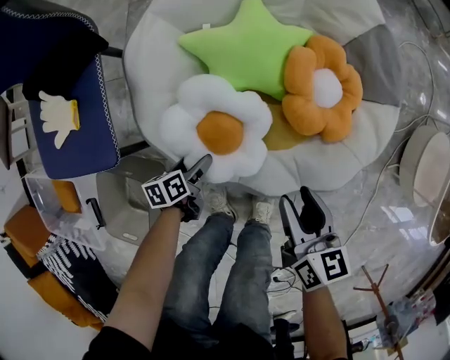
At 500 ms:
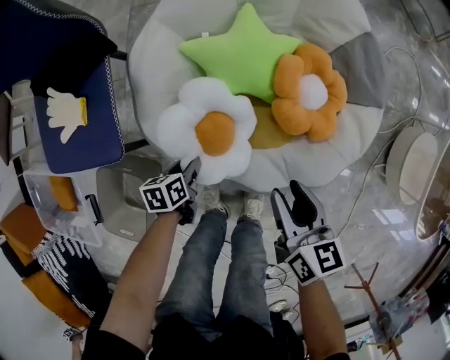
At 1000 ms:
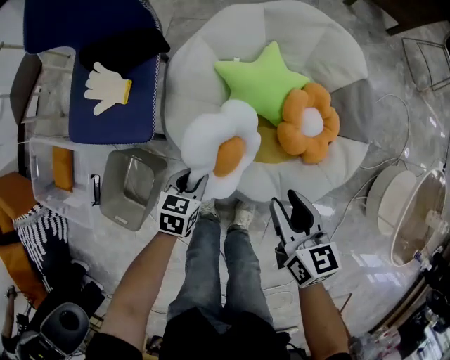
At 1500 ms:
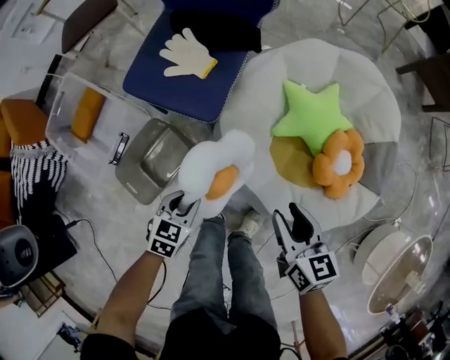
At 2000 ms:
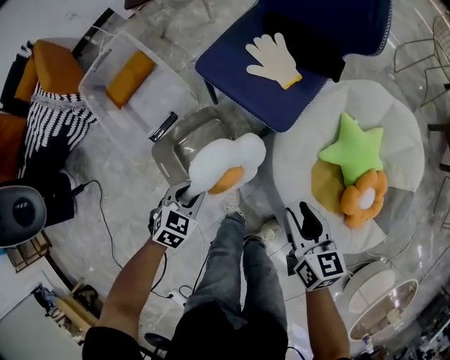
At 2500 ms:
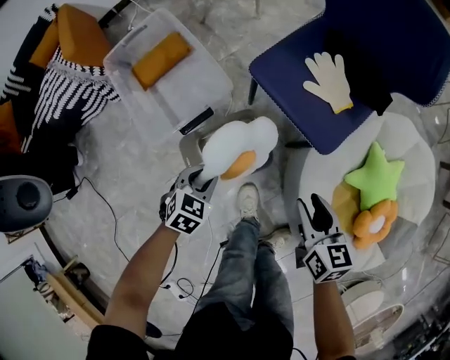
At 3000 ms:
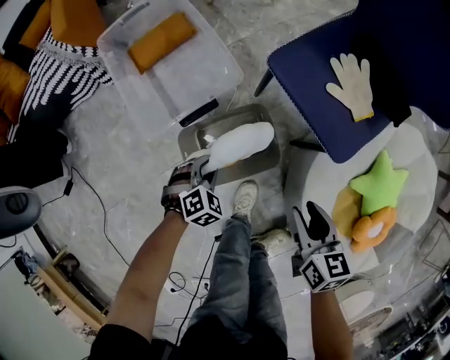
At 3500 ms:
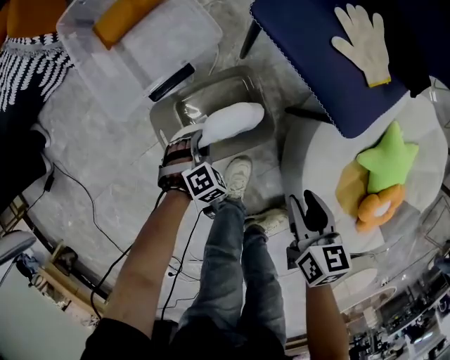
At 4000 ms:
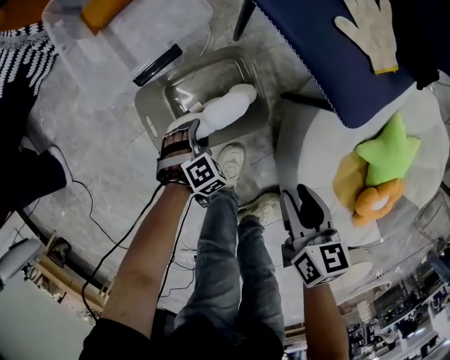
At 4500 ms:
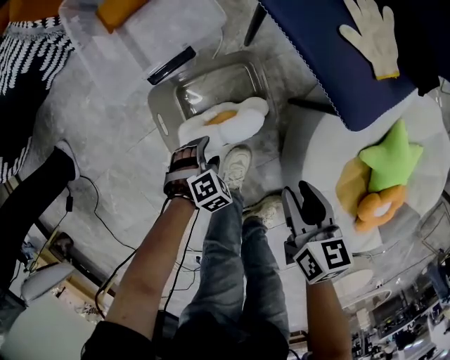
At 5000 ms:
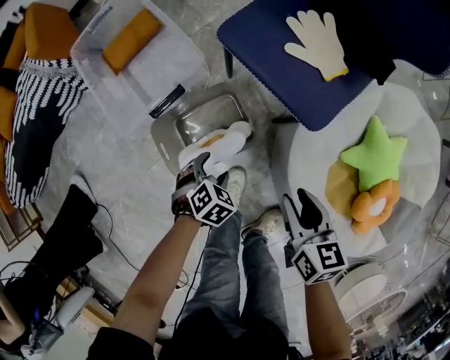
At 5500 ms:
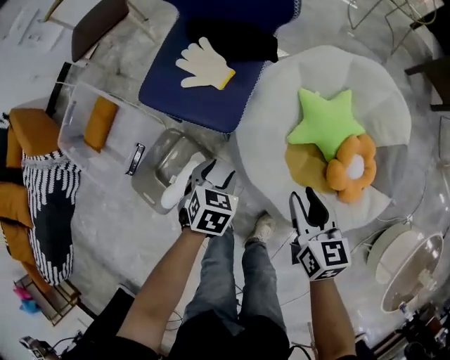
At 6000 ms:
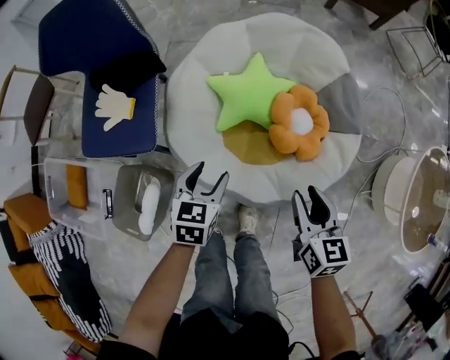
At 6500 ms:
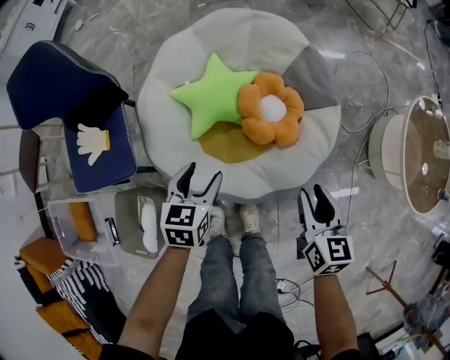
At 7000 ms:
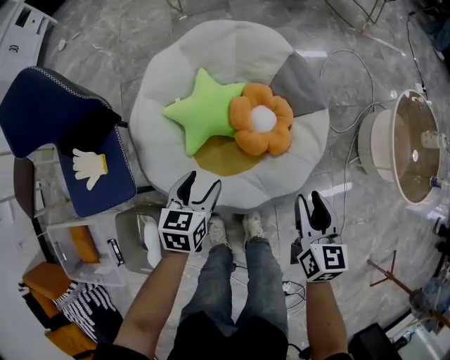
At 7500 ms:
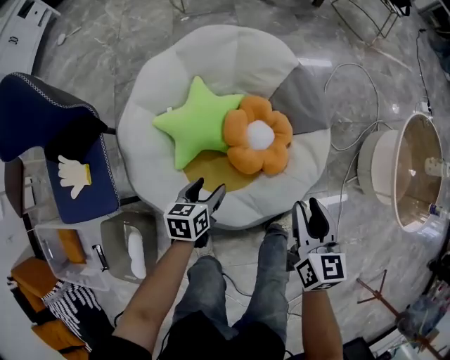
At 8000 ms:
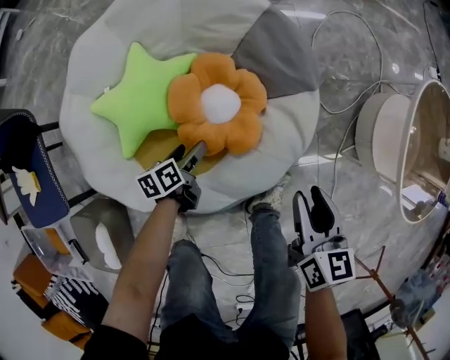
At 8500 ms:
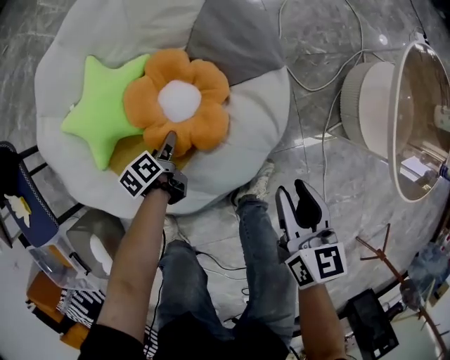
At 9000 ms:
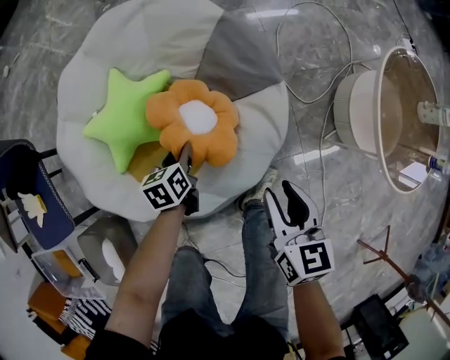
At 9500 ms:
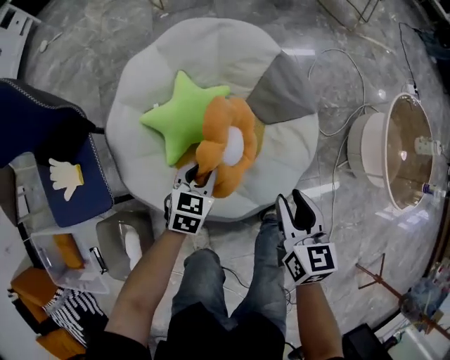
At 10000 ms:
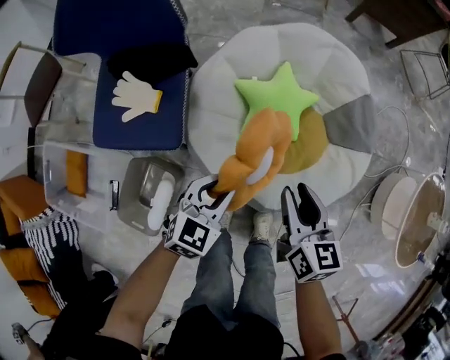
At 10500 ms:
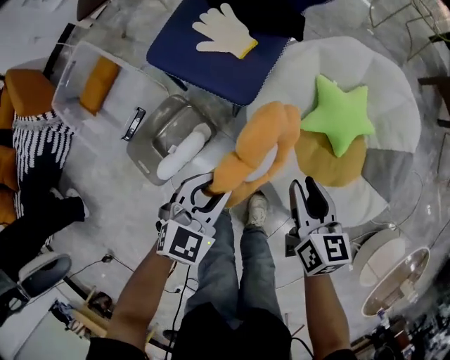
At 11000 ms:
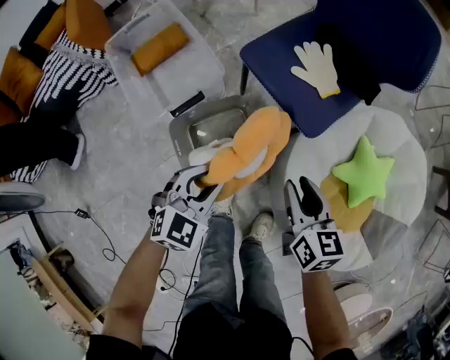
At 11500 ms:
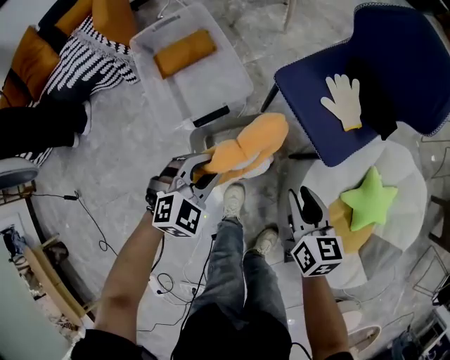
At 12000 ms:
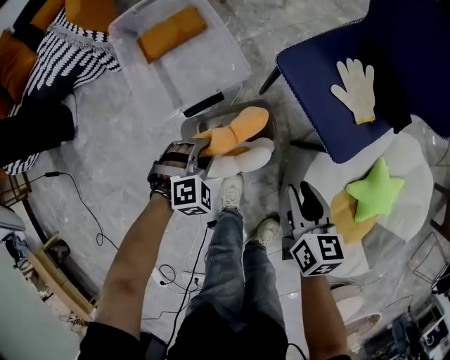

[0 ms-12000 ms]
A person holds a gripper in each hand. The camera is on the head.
0 ms to 2000 ms: The right gripper moves some 30 cm, and changes its angle by approximately 50 degrees; the left gripper ends up approximately 40 cm from where it was, swivels some 40 degrees, and closes.
2000 ms to 4000 ms: The right gripper moves downward, roughly 15 cm. Meanwhile the left gripper travels downward by approximately 25 cm, and changes its angle by some 30 degrees.
4000 ms to 6000 ms: The pair of grippers is taken some 40 cm. The right gripper rotates about 50 degrees, while the left gripper turns by some 50 degrees.
6000 ms to 8000 ms: The right gripper moves approximately 25 cm, and rotates about 20 degrees, while the left gripper shifts about 25 cm downward, and rotates about 40 degrees.
8000 ms to 10000 ms: The left gripper travels upward, to the left and backward by roughly 40 cm, twists approximately 60 degrees clockwise, seen from behind, and closes. Meanwhile the right gripper travels to the left and upward by about 35 cm, and turns by about 20 degrees.
10000 ms to 12000 ms: The right gripper changes place by approximately 40 cm, and rotates approximately 50 degrees, while the left gripper changes place by roughly 50 cm, and swivels some 50 degrees.

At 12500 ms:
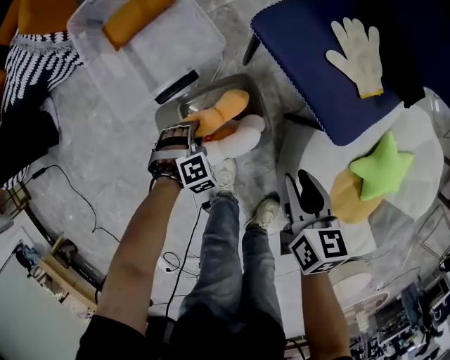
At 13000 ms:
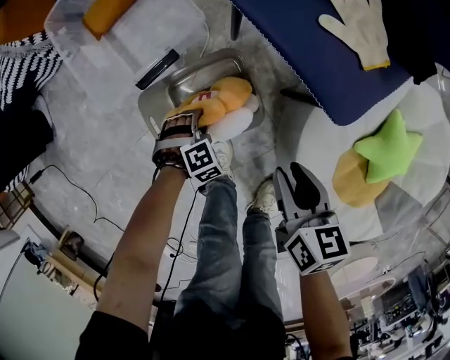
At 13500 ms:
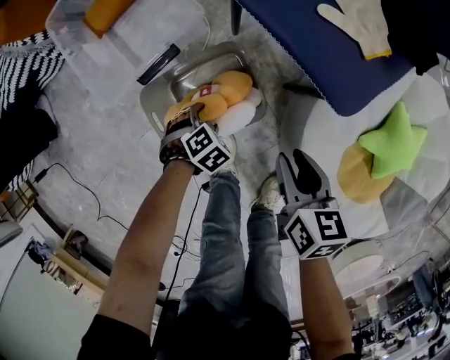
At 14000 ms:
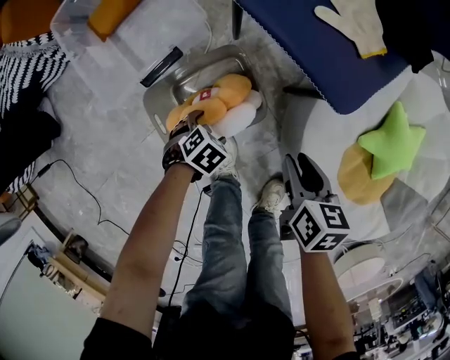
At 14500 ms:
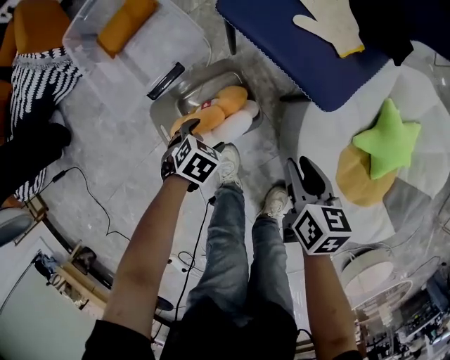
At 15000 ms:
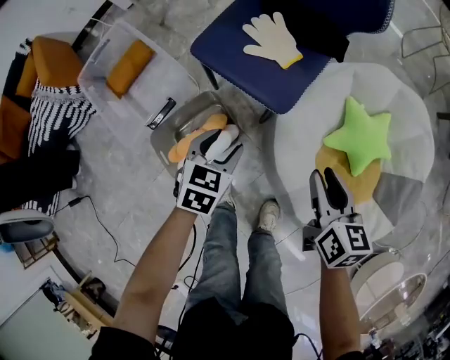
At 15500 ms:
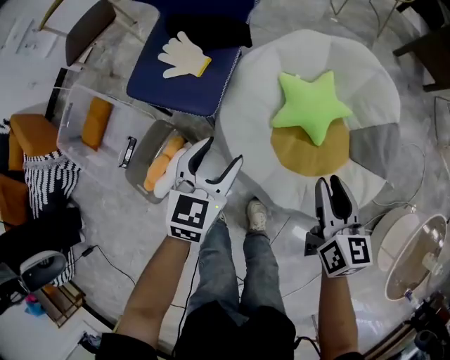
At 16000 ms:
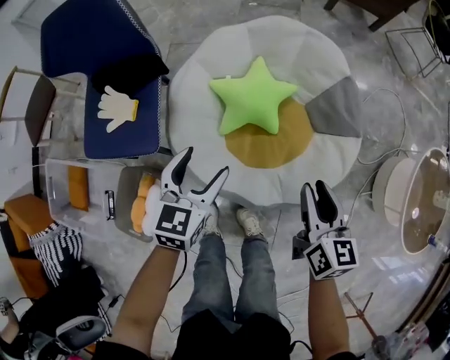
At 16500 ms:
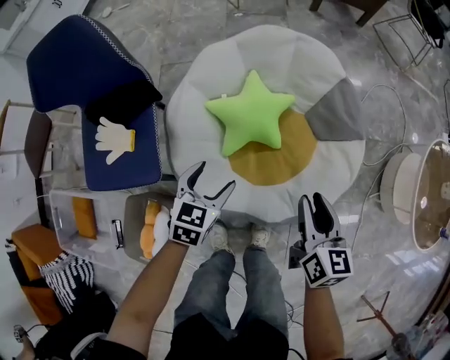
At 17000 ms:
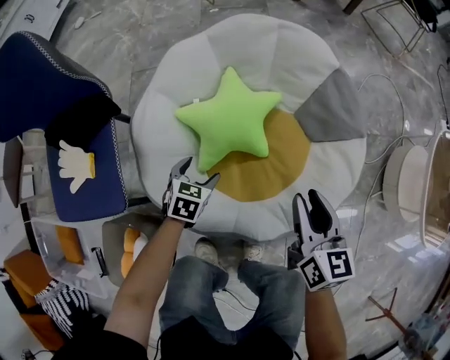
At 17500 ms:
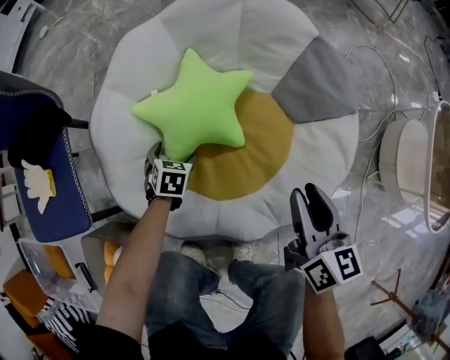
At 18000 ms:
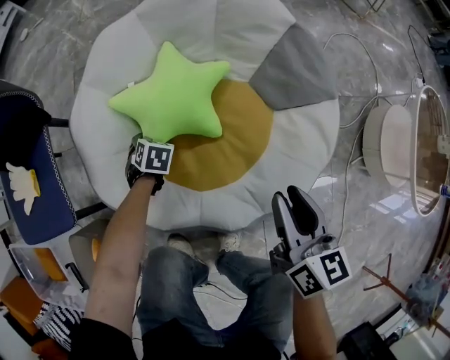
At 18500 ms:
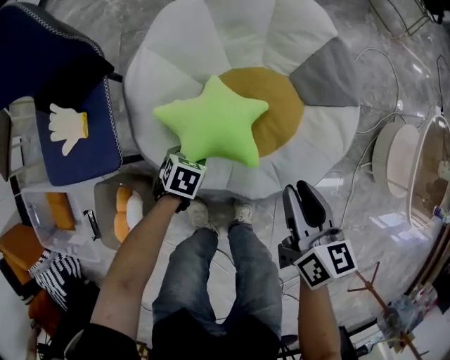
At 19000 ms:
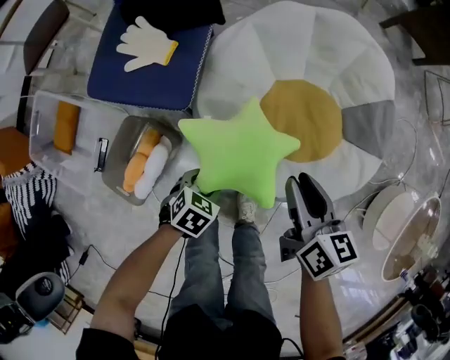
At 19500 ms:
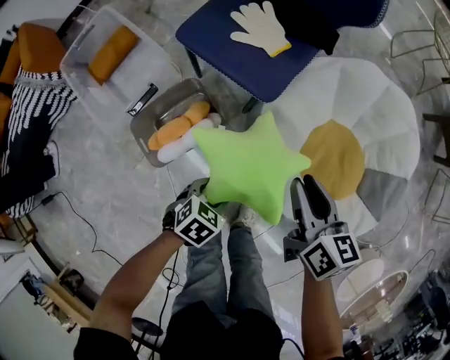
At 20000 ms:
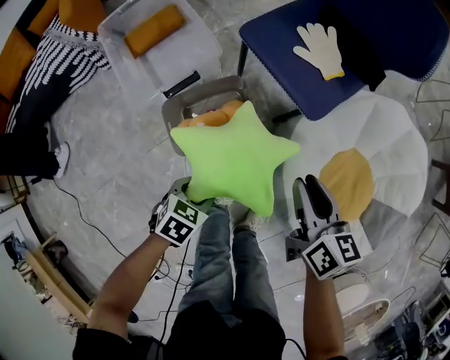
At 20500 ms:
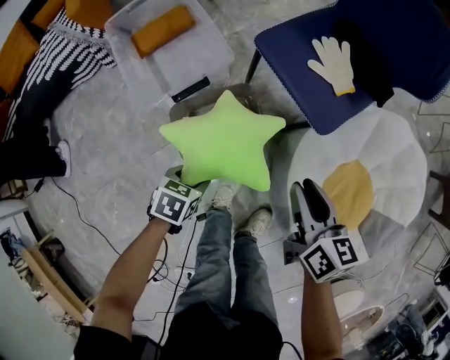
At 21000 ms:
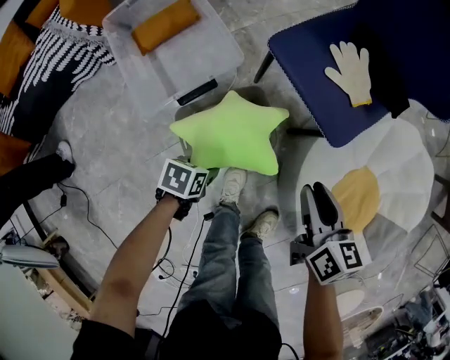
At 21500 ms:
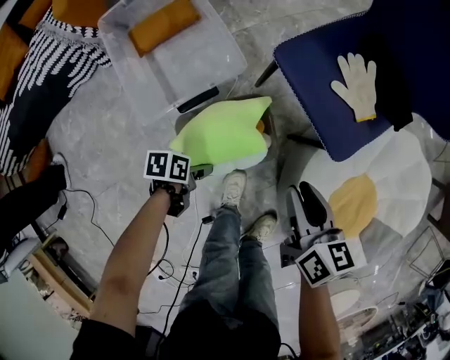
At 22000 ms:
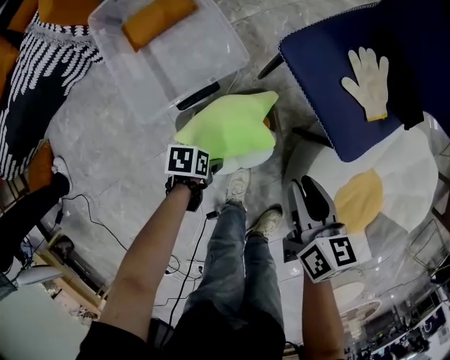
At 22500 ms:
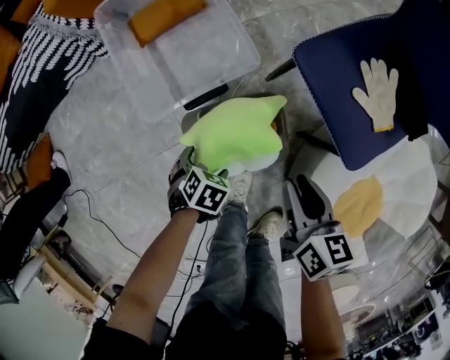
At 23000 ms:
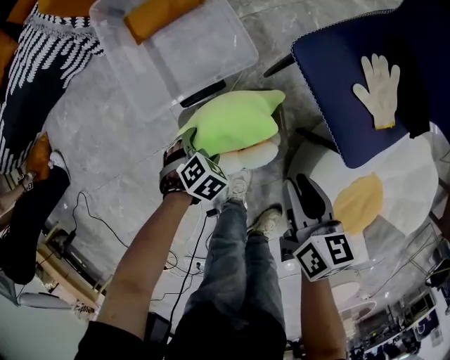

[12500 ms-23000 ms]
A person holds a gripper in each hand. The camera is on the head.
12500 ms to 14500 ms: The right gripper ends up some 5 cm from where it was. Meanwhile the left gripper ends up about 10 cm from where it was, turns by roughly 40 degrees, and opens its fingers.
14500 ms to 16500 ms: The pair of grippers is taken about 40 cm. The right gripper turns by some 60 degrees, while the left gripper tips its fingers upward by some 40 degrees.
16500 ms to 19000 ms: The right gripper travels downward and back again, about 15 cm each way, and turns by roughly 30 degrees; the left gripper moves about 30 cm downward and comes back, and turns by some 30 degrees.
19000 ms to 21000 ms: The right gripper shifts by some 30 cm, and turns by some 40 degrees. Meanwhile the left gripper goes upward and returns, approximately 5 cm each way, and rotates around the line of its fingers by approximately 60 degrees, counterclockwise from behind.
21000 ms to 23000 ms: The left gripper ends up approximately 10 cm from where it was, rotates approximately 40 degrees, and opens. Meanwhile the right gripper moves some 10 cm.

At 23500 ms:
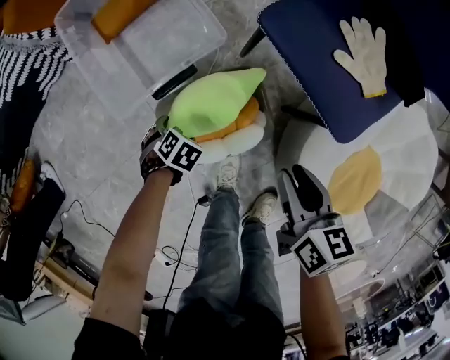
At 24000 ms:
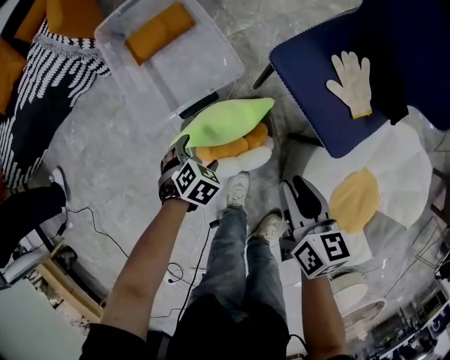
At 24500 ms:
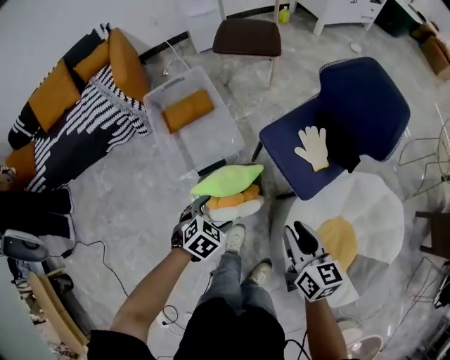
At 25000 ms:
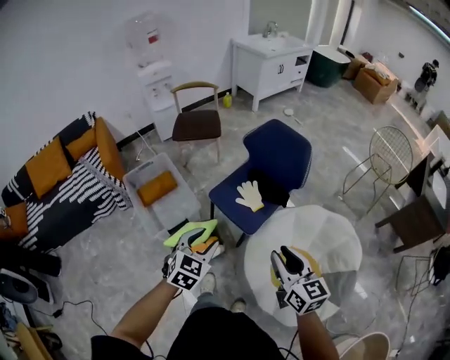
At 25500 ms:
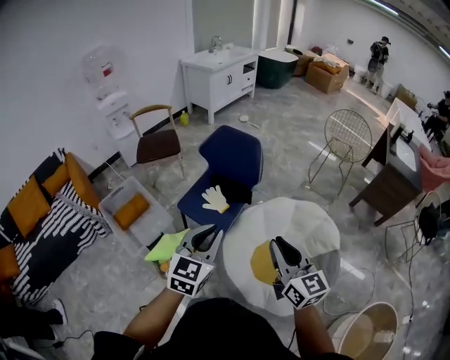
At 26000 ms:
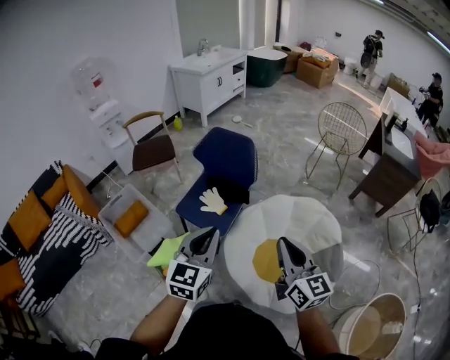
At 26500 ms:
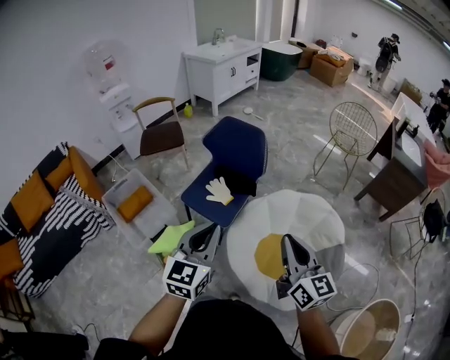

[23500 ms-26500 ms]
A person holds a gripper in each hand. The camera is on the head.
23500 ms to 25000 ms: The two grippers go roughly 50 cm upward. The left gripper points its fingers approximately 50 degrees further upward, and closes, while the right gripper swivels about 40 degrees.
25000 ms to 26500 ms: The right gripper moves to the right, upward and backward, roughly 15 cm, and swivels about 20 degrees; the left gripper goes roughly 20 cm to the right and upward, rotates about 30 degrees, and closes.
